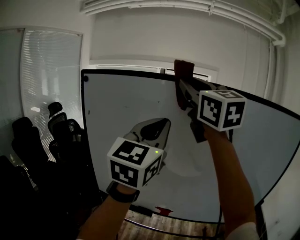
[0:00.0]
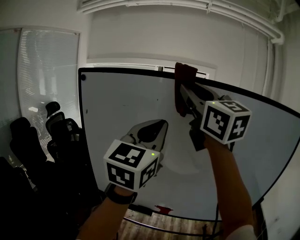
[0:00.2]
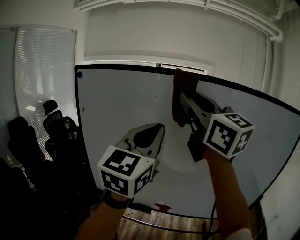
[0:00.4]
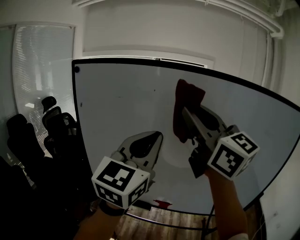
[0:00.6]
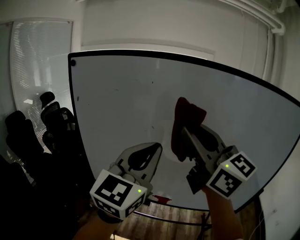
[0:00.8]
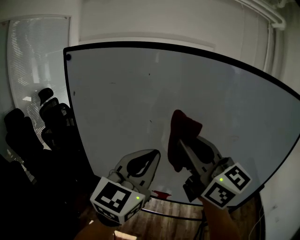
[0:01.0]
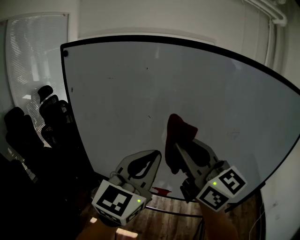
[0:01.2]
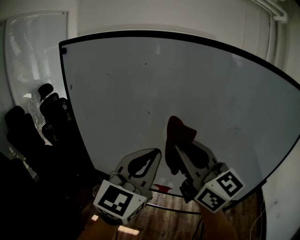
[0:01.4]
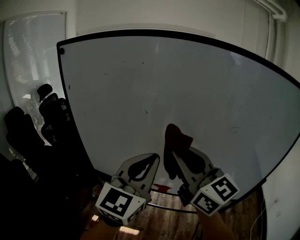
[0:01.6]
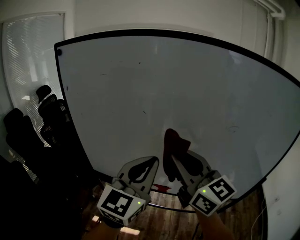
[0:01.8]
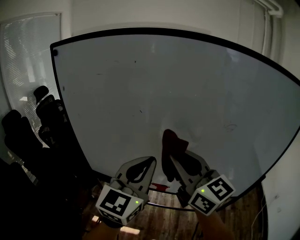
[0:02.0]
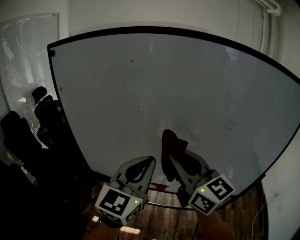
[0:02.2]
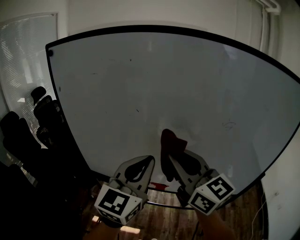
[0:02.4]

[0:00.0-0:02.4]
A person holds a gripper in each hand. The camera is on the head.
0:00.0 to 0:01.2: Both grippers move downward, some 20 cm.
0:01.2 to 0:02.4: Both grippers move downward, approximately 5 cm.

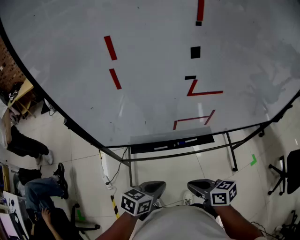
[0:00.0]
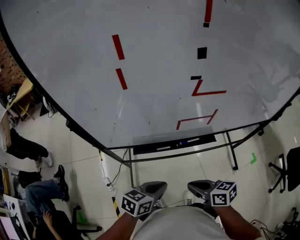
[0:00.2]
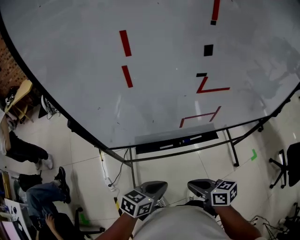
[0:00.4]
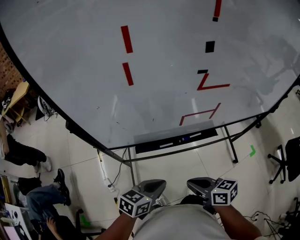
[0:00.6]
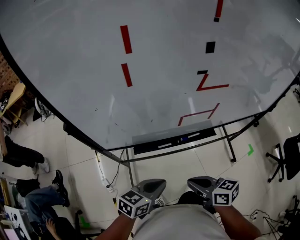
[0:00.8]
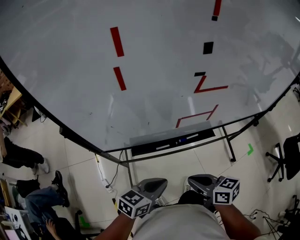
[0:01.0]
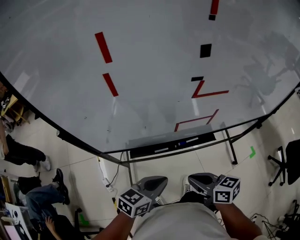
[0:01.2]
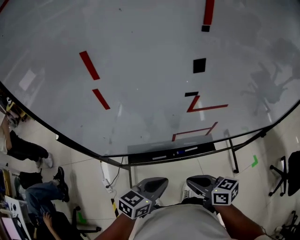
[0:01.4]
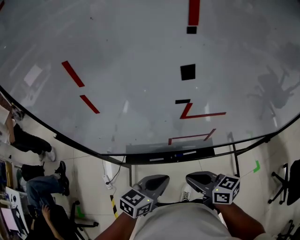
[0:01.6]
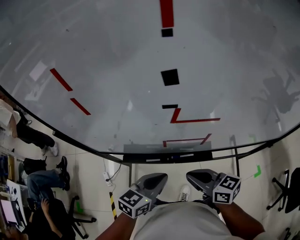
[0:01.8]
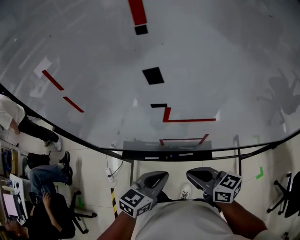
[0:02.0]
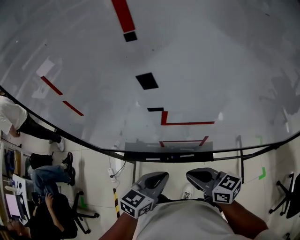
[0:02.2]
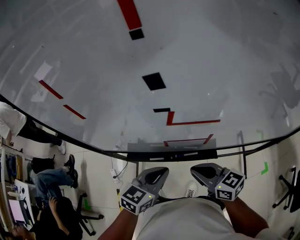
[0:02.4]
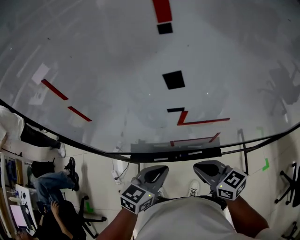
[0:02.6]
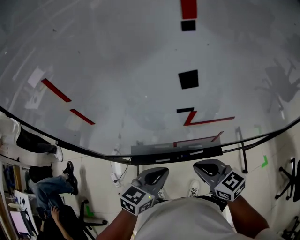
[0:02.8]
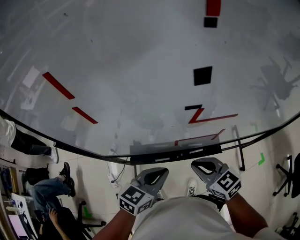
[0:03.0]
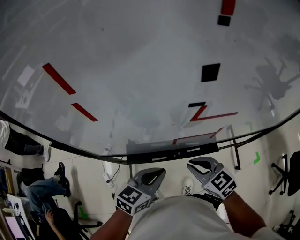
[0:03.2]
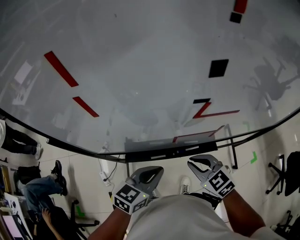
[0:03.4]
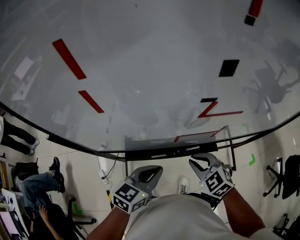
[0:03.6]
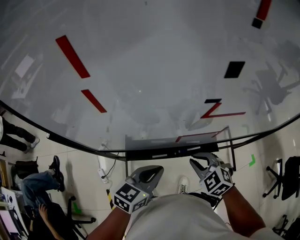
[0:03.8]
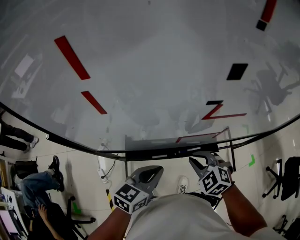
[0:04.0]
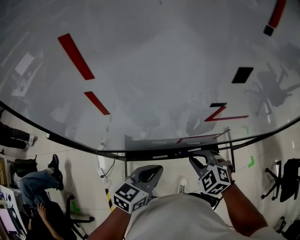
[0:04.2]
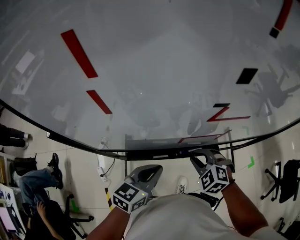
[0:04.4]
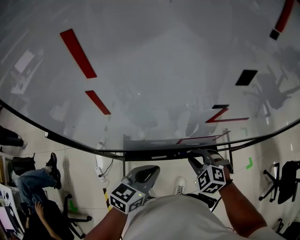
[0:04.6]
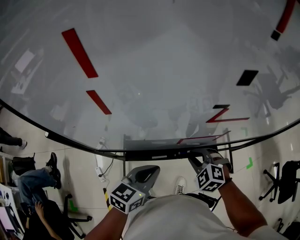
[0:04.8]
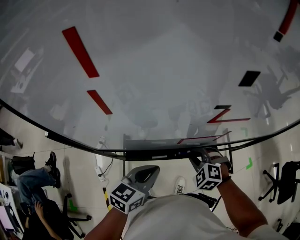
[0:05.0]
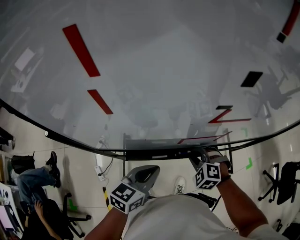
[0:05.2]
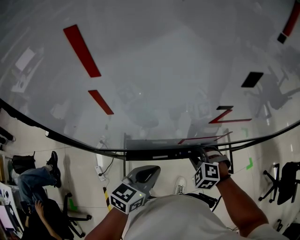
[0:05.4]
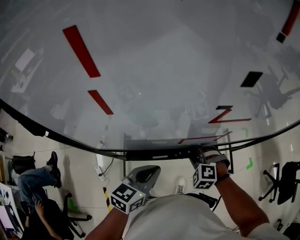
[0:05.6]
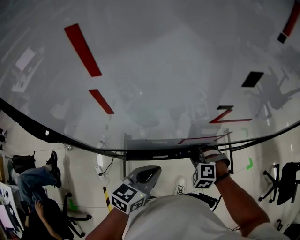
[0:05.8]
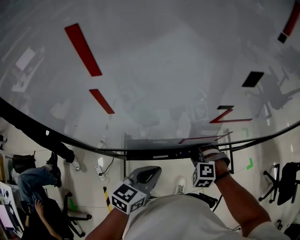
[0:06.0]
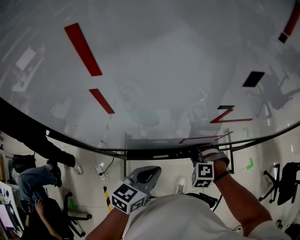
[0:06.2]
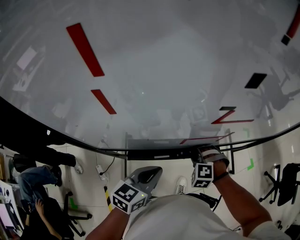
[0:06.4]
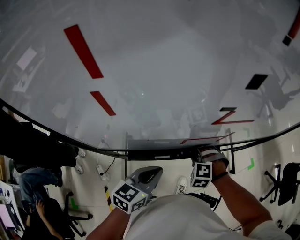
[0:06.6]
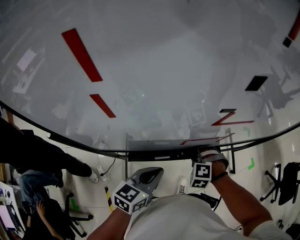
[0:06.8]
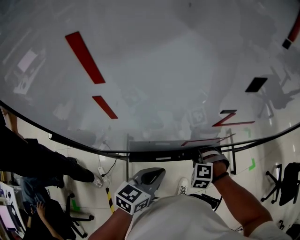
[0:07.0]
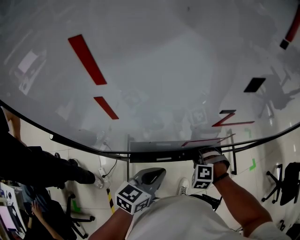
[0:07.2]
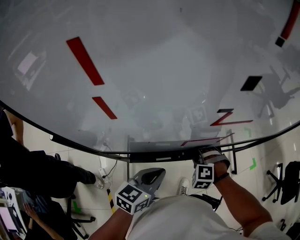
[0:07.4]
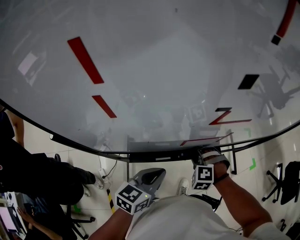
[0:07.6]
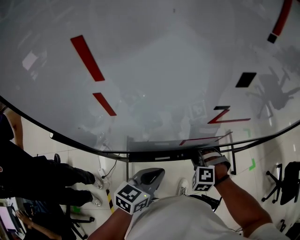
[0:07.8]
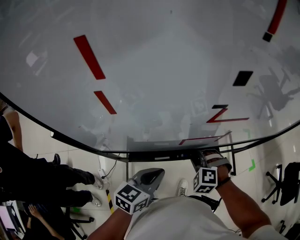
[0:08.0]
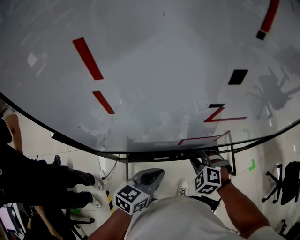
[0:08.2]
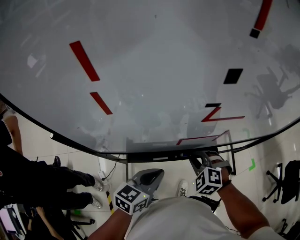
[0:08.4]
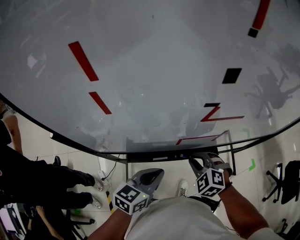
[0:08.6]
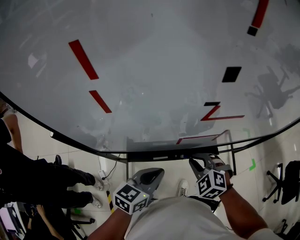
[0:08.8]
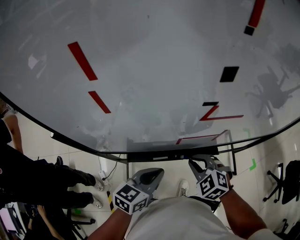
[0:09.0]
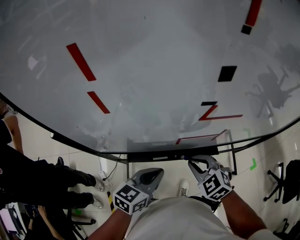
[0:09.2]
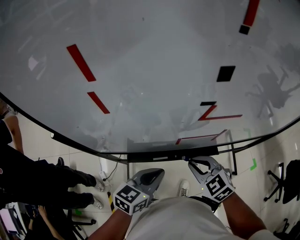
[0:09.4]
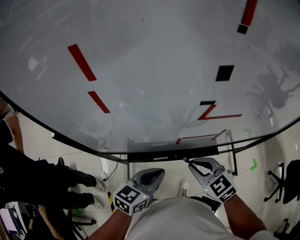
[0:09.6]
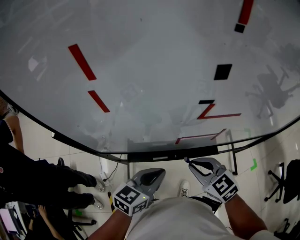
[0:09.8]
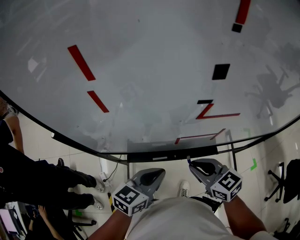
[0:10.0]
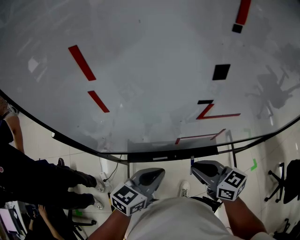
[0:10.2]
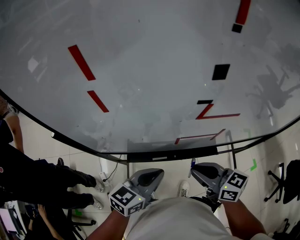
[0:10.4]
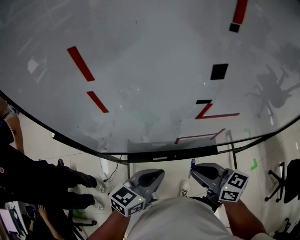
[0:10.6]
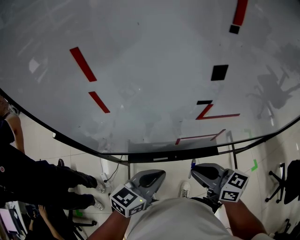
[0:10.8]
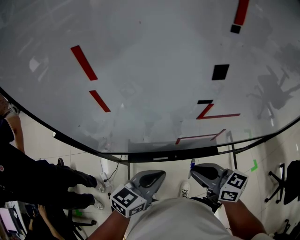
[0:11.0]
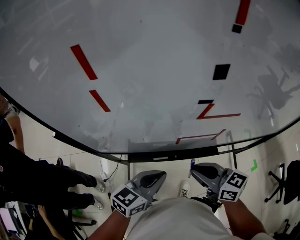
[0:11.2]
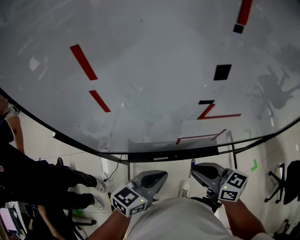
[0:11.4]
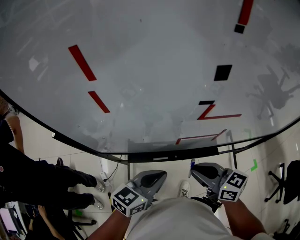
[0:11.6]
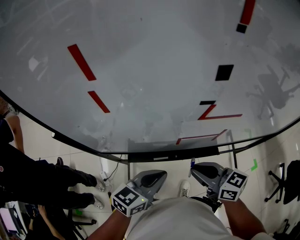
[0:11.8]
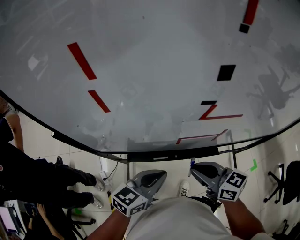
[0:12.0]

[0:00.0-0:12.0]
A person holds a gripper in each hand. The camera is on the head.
0:00.0 to 0:01.6: Both grippers move forward, some 10 cm.
0:01.6 to 0:03.0: The right gripper shifts about 5 cm forward, and changes its angle by some 30 degrees.
0:03.0 to 0:04.4: The right gripper goes approximately 5 cm downward, and rotates some 40 degrees.
0:04.4 to 0:06.0: The right gripper is displaced downward by roughly 5 cm, and changes its angle by approximately 30 degrees.
0:06.0 to 0:07.6: The grippers stay close to where they were, moving slightly.
0:07.6 to 0:09.0: The right gripper travels upward by approximately 10 cm, and turns by some 30 degrees.
0:09.0 to 0:10.4: The right gripper is displaced upward by roughly 10 cm, and tips its fingers upward by some 30 degrees.
0:10.4 to 0:12.0: Both grippers stay about where they are.

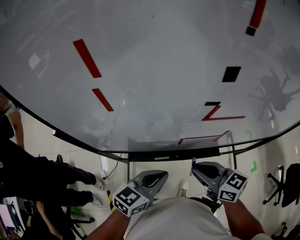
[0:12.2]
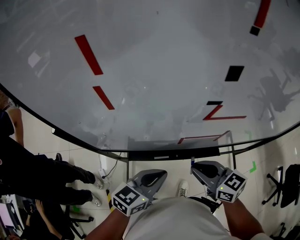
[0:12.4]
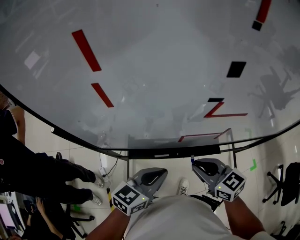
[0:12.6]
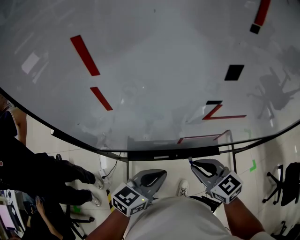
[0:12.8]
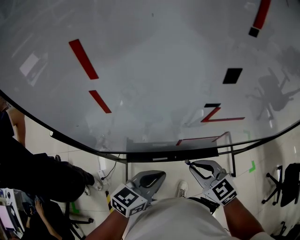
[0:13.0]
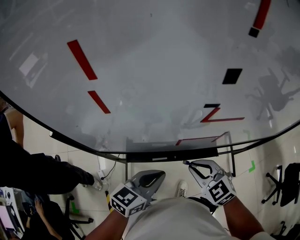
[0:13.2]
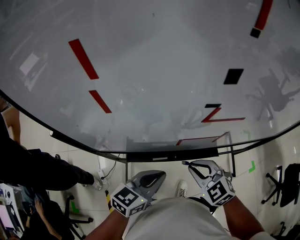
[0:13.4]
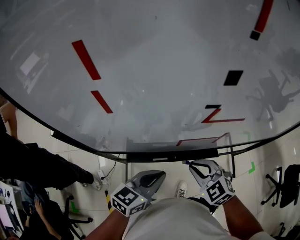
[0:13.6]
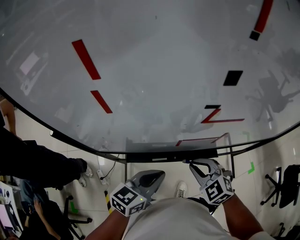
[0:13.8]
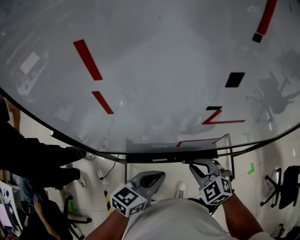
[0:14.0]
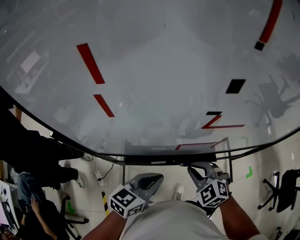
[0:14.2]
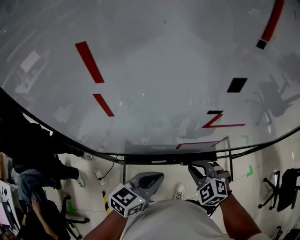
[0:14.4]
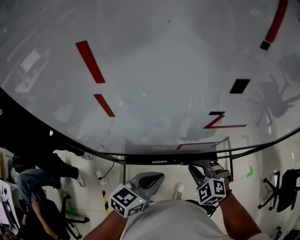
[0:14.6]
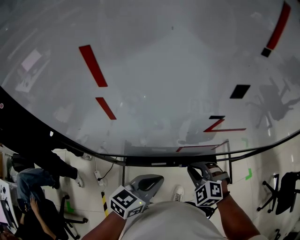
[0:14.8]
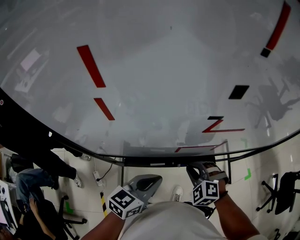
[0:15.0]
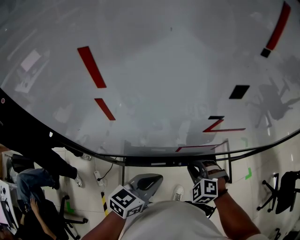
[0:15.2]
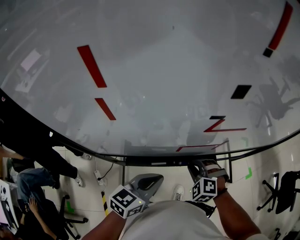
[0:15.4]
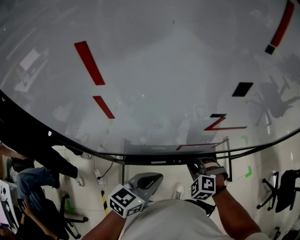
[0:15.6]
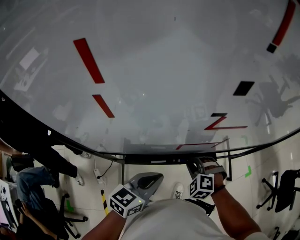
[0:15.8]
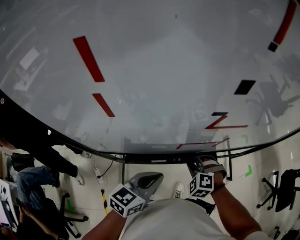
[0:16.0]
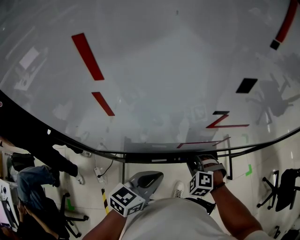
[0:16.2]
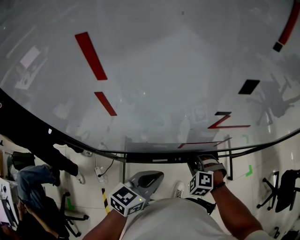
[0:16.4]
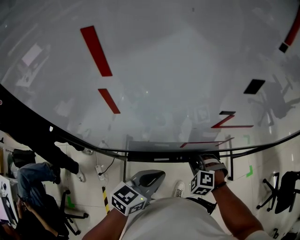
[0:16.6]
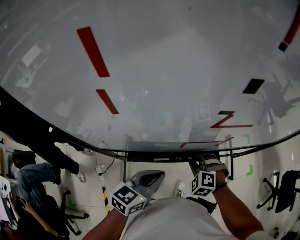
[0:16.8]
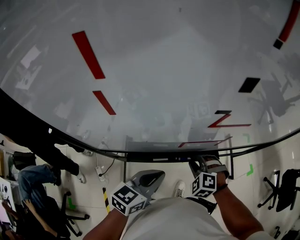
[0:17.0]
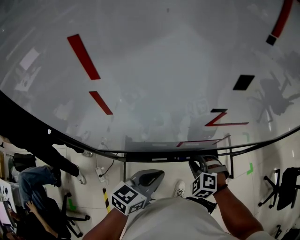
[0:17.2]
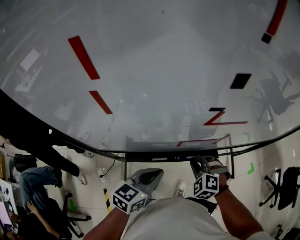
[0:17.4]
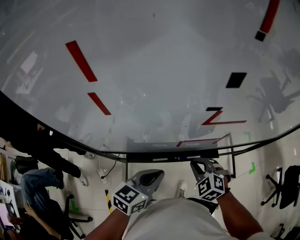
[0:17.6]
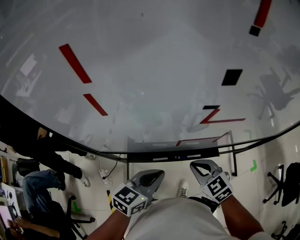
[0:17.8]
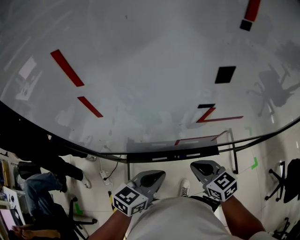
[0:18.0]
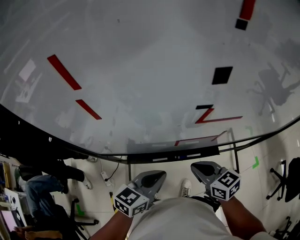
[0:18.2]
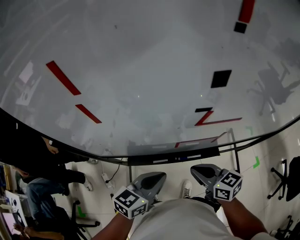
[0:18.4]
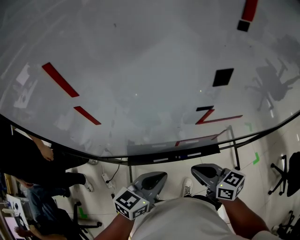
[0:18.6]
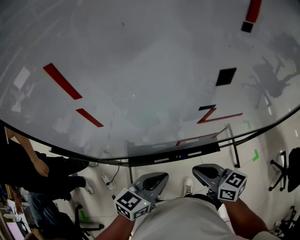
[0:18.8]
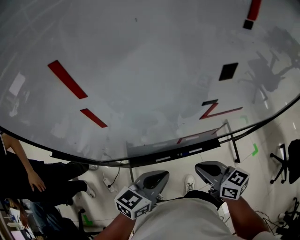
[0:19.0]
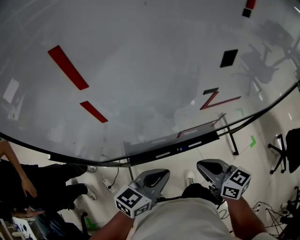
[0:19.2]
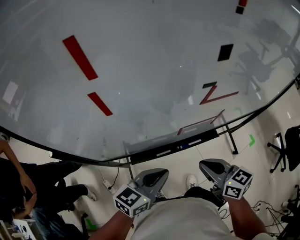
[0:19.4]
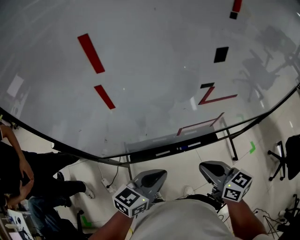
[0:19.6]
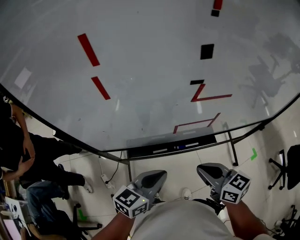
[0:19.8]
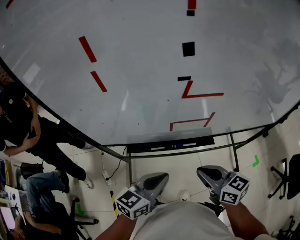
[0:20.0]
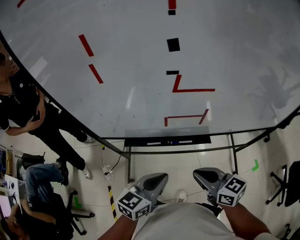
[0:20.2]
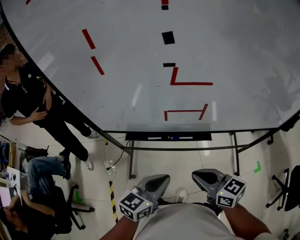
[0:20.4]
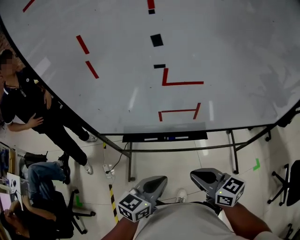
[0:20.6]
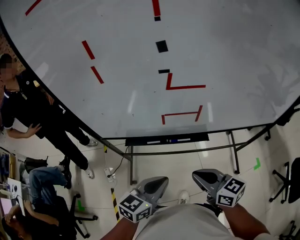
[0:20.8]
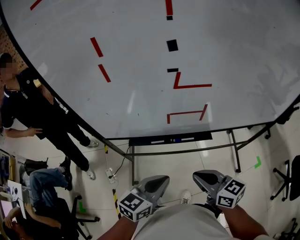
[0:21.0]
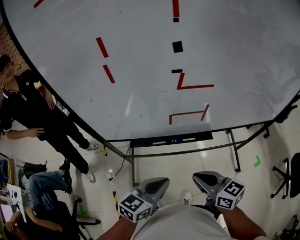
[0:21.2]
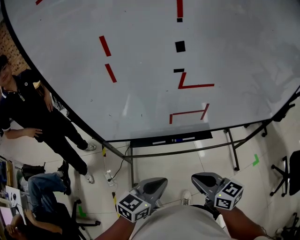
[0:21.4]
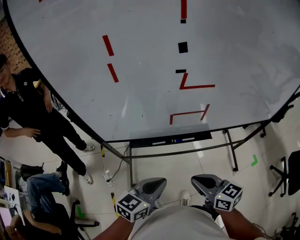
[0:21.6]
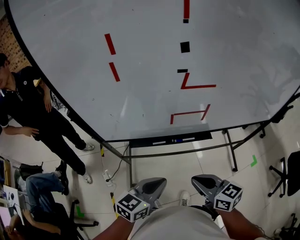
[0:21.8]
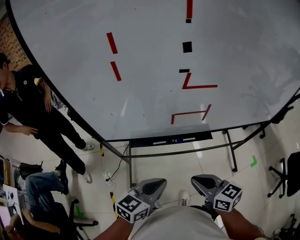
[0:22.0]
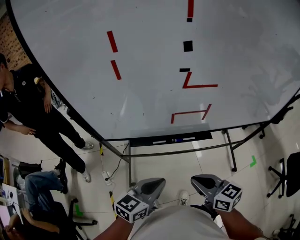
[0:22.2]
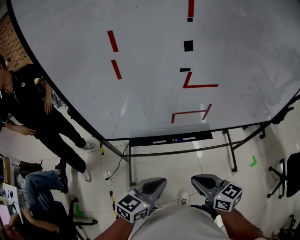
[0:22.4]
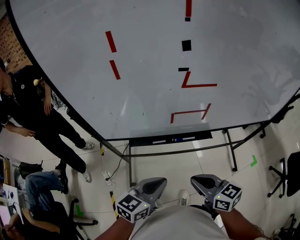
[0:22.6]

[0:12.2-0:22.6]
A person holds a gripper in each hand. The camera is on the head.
0:12.2 to 0:13.6: The right gripper moves approximately 5 cm, and rotates approximately 50 degrees.
0:13.6 to 0:15.2: The right gripper moves downward, some 5 cm, and swivels some 30 degrees.
0:15.2 to 0:16.6: There are only small adjustments of the grippers.
0:16.6 to 0:18.2: The right gripper travels upward by approximately 10 cm, and rotates around the line of its fingers by some 60 degrees, clockwise from behind.
0:18.2 to 0:19.6: The right gripper travels upward and backward by roughly 5 cm.
0:19.6 to 0:21.2: Both grippers move backward, some 10 cm.
0:21.2 to 0:22.6: The grippers make only small movements.
